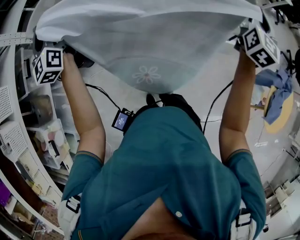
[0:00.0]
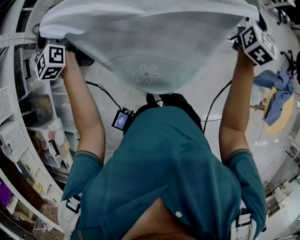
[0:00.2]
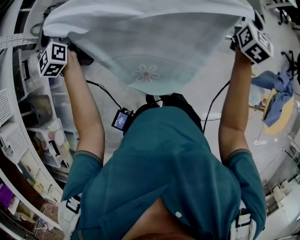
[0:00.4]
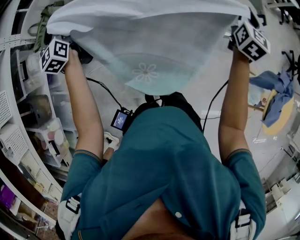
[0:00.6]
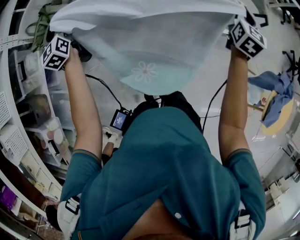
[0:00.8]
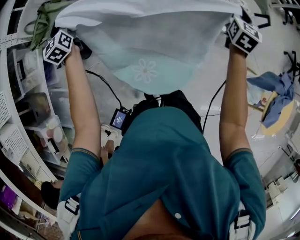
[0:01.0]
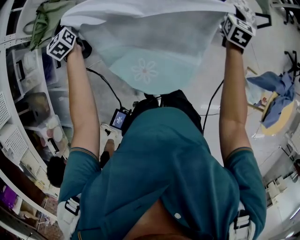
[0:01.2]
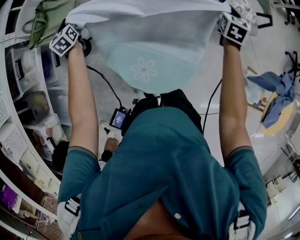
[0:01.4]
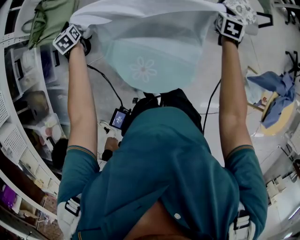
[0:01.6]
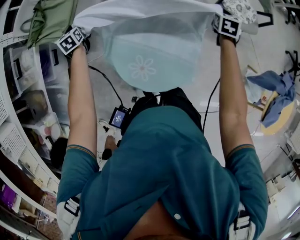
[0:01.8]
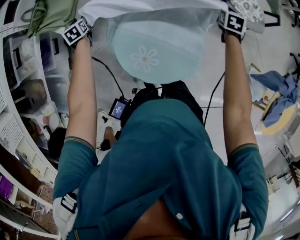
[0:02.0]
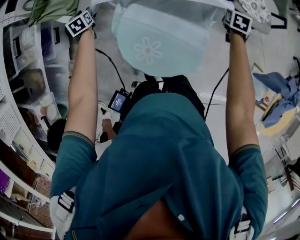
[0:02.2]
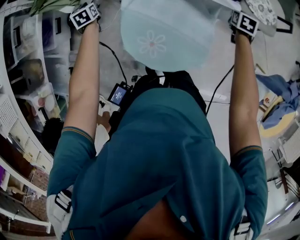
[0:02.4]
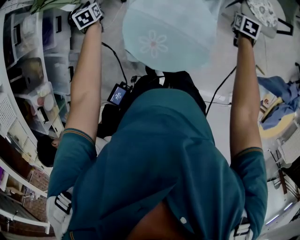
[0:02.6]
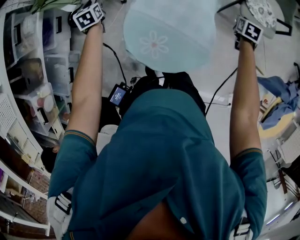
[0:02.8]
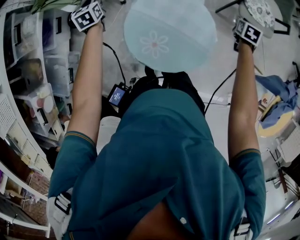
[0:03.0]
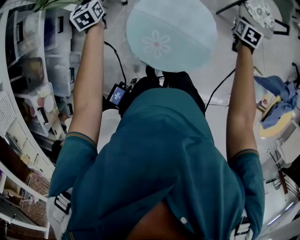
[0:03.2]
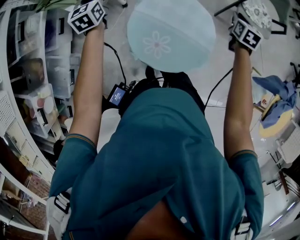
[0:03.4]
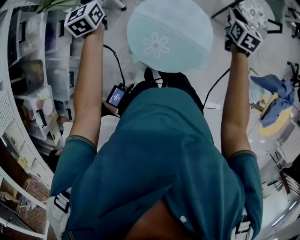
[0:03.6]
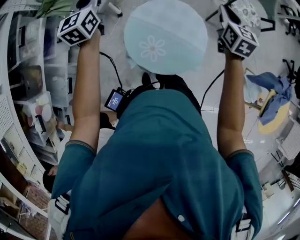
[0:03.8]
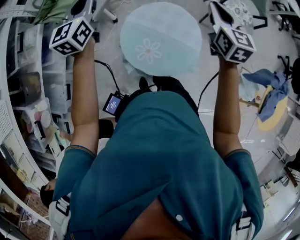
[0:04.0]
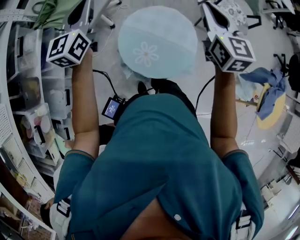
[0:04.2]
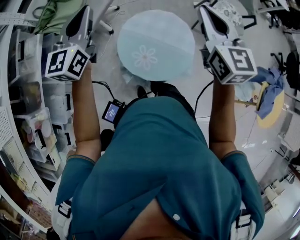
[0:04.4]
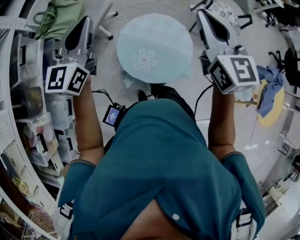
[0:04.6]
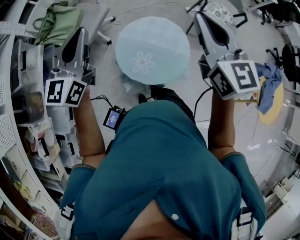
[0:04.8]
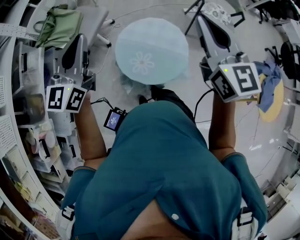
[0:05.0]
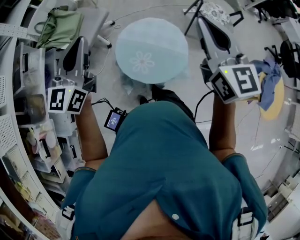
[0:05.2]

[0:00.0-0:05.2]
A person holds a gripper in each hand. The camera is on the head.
0:00.0 to 0:01.8: Both grippers travel together downward, about 35 cm. The left gripper tilts its fingers about 50 degrees downward, and opens up. Meanwhile the right gripper points its fingers approximately 40 degrees further downward.
0:01.8 to 0:03.4: The left gripper shifts some 15 cm upward, to the right and backward, and rotates approximately 20 degrees. The right gripper shifts roughly 10 cm backward and to the left, and goes downward and returns, about 10 cm each way.
0:03.4 to 0:05.2: The right gripper is displaced upward, backward and to the left by some 50 cm, tips its fingers upward by approximately 40 degrees, and closes its fingers; the left gripper heads backward and upward, covering some 35 cm, rotates approximately 40 degrees, and closes its fingers.

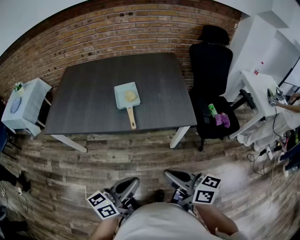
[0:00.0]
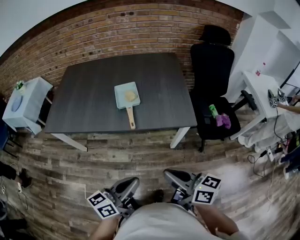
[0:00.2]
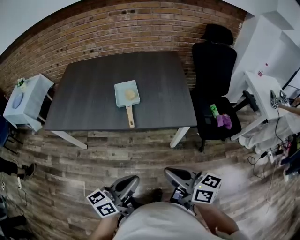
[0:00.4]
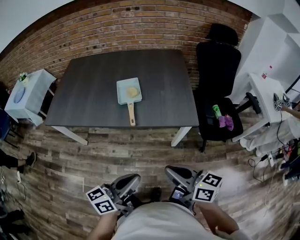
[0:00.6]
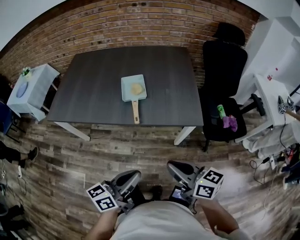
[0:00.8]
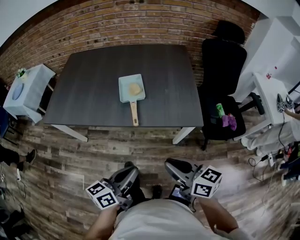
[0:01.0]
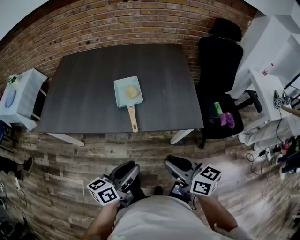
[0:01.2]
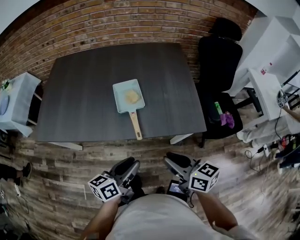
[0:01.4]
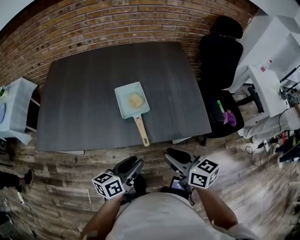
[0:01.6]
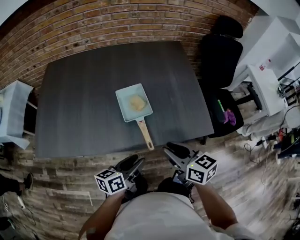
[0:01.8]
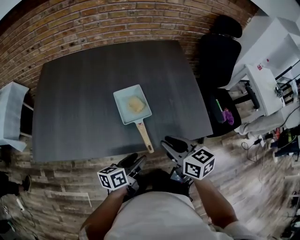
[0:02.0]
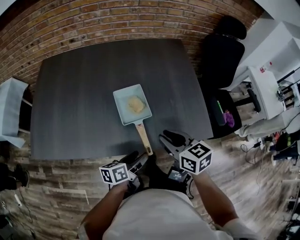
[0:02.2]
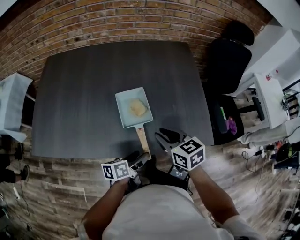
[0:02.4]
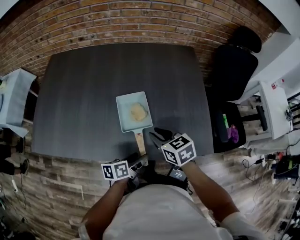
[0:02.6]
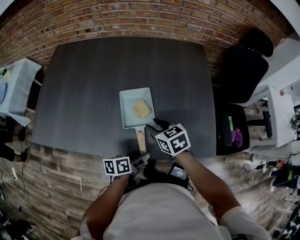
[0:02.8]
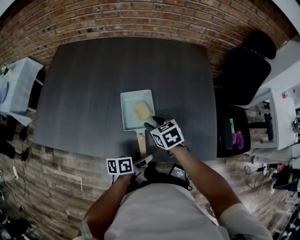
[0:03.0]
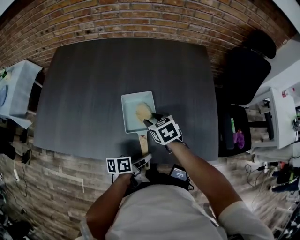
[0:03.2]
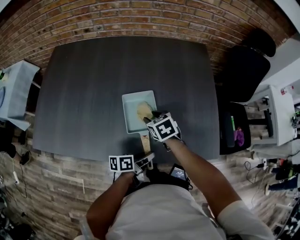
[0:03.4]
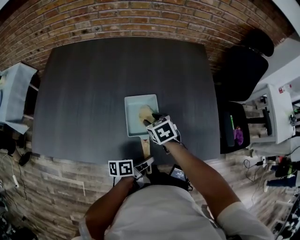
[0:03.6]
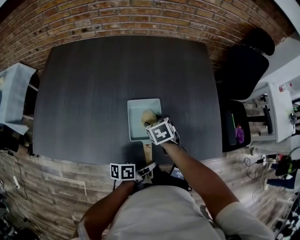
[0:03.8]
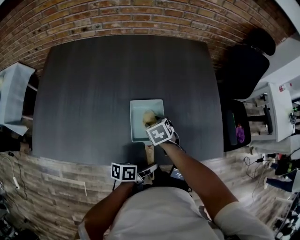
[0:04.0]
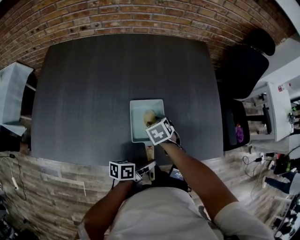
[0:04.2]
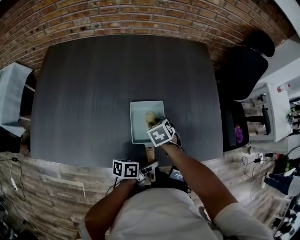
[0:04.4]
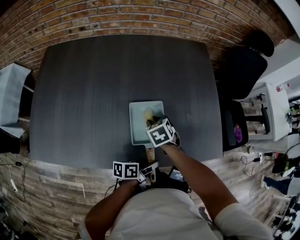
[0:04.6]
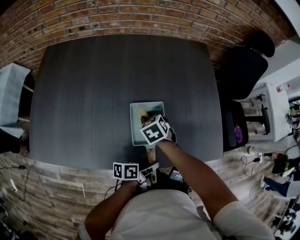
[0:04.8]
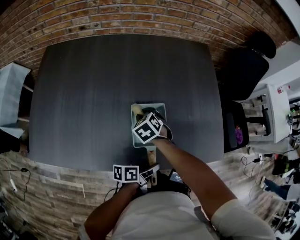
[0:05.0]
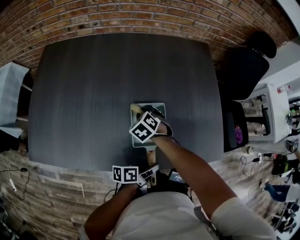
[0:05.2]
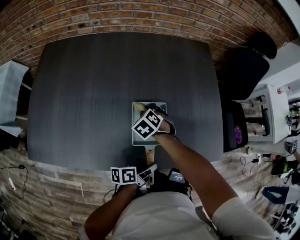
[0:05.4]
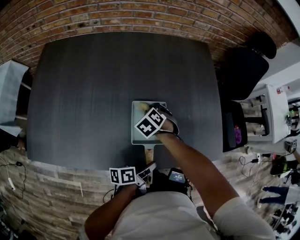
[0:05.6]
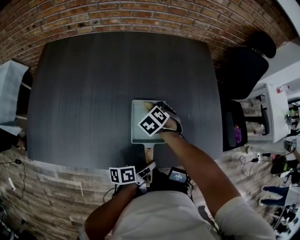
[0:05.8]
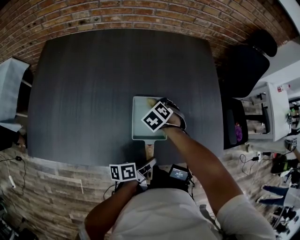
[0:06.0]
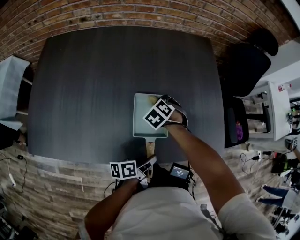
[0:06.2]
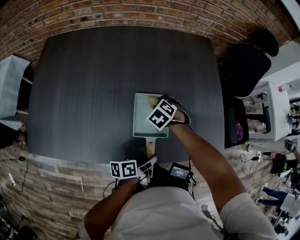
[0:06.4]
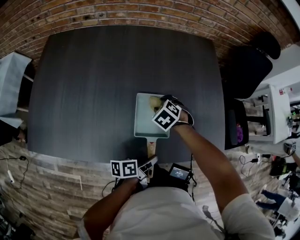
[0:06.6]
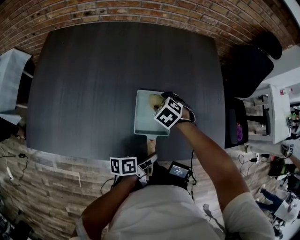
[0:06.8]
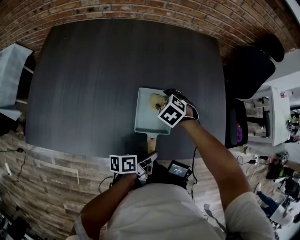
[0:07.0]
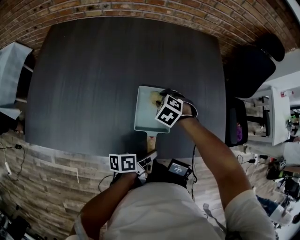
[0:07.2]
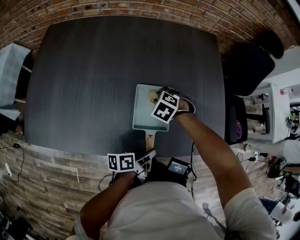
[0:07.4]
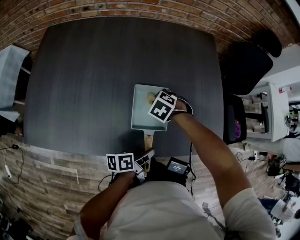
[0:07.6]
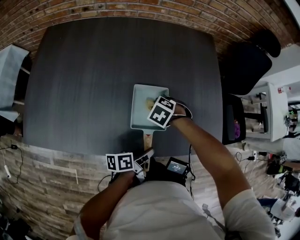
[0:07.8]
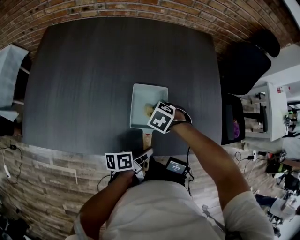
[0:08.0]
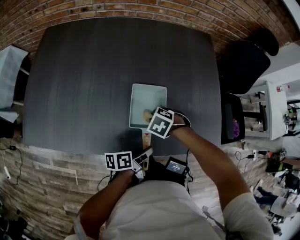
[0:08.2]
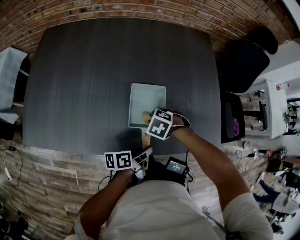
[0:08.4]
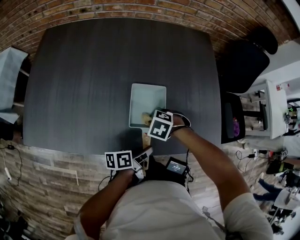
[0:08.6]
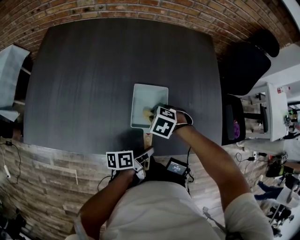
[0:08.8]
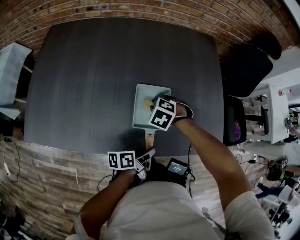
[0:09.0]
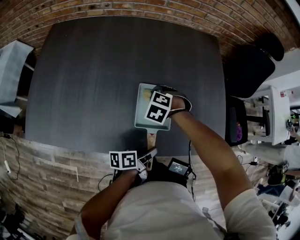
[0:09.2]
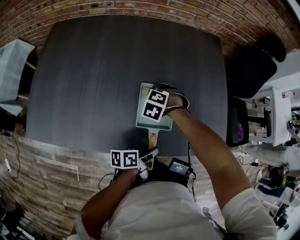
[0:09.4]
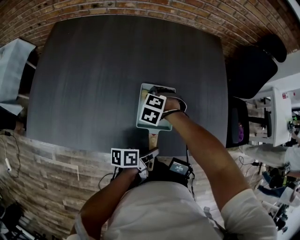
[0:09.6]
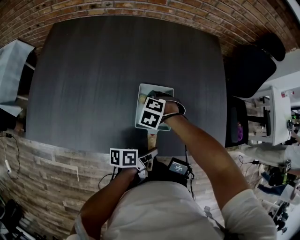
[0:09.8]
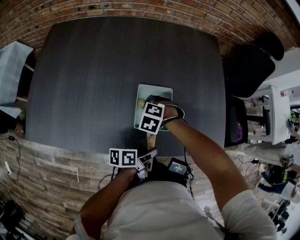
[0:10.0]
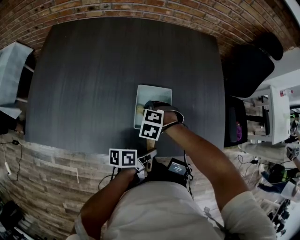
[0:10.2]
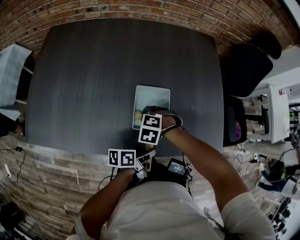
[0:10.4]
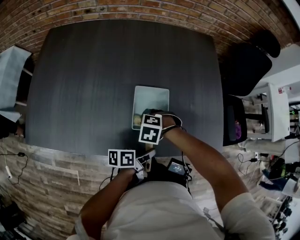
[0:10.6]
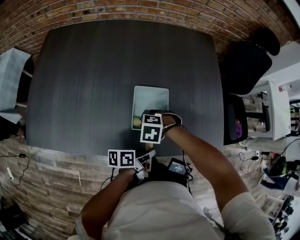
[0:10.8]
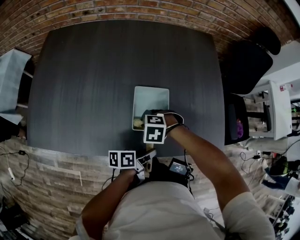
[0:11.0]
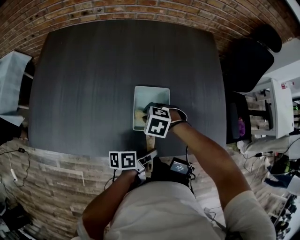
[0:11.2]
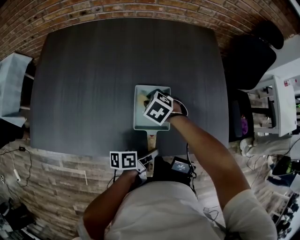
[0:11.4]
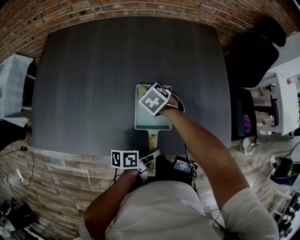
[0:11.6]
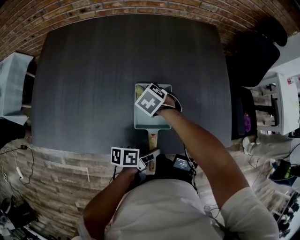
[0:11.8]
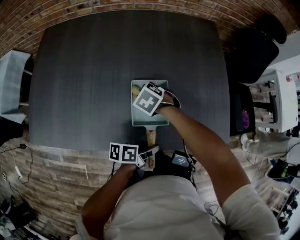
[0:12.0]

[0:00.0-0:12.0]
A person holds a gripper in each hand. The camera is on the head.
0:00.0 to 0:01.6: The right gripper changes place by approximately 25 cm.
0:01.6 to 0:03.0: The right gripper shifts by approximately 30 cm, and turns by about 30 degrees.
0:03.0 to 0:04.4: The right gripper heads downward, covering approximately 5 cm, and rotates about 20 degrees.
0:04.4 to 0:06.0: The right gripper moves about 5 cm, and changes its angle by some 20 degrees.
0:06.0 to 0:07.6: The right gripper opens, then closes again.
0:09.0 to 0:10.4: The right gripper changes place by about 5 cm.
0:10.4 to 0:12.0: The right gripper ends up roughly 5 cm from where it was, and turns by some 30 degrees.

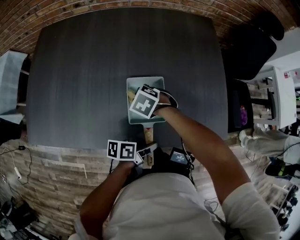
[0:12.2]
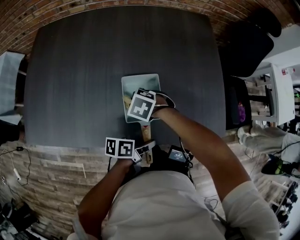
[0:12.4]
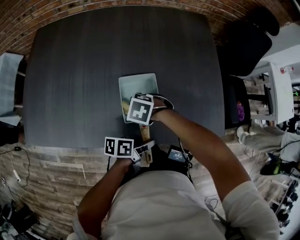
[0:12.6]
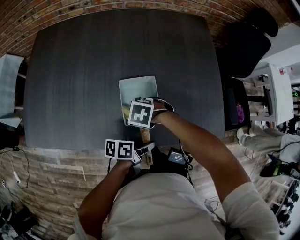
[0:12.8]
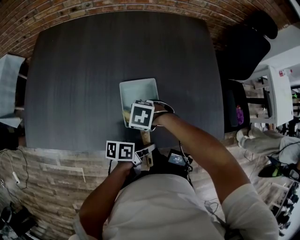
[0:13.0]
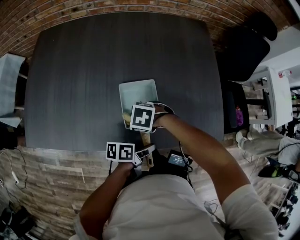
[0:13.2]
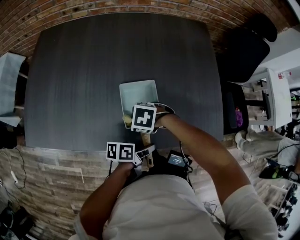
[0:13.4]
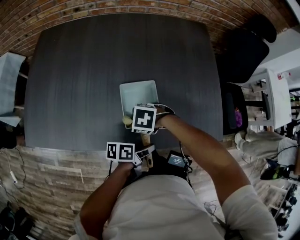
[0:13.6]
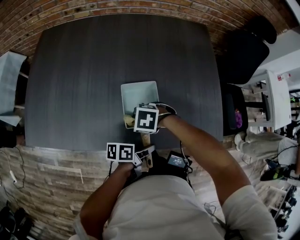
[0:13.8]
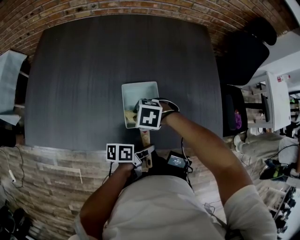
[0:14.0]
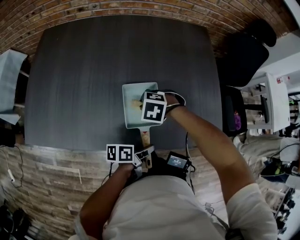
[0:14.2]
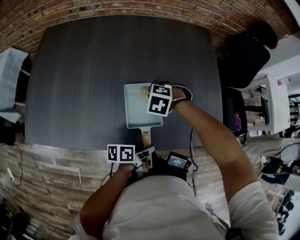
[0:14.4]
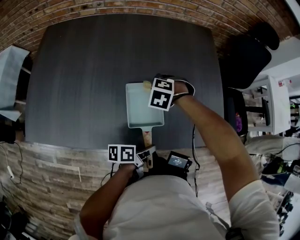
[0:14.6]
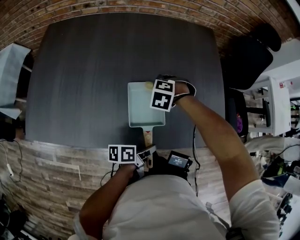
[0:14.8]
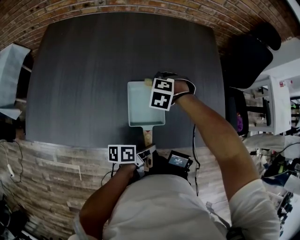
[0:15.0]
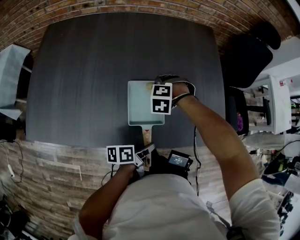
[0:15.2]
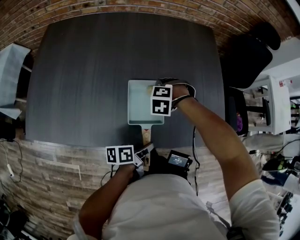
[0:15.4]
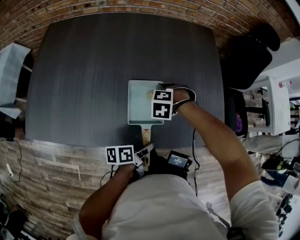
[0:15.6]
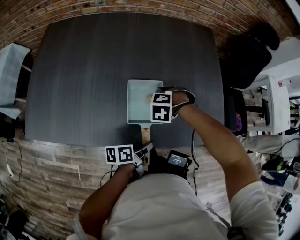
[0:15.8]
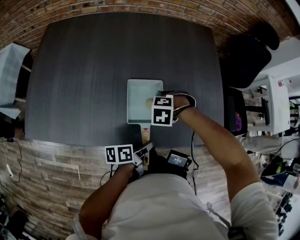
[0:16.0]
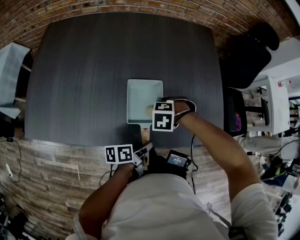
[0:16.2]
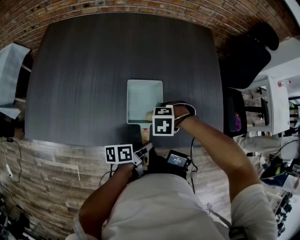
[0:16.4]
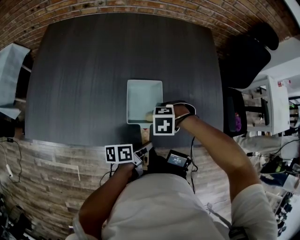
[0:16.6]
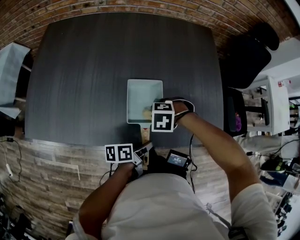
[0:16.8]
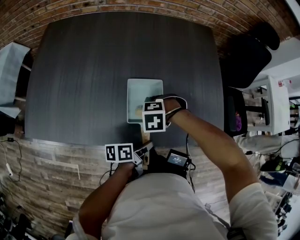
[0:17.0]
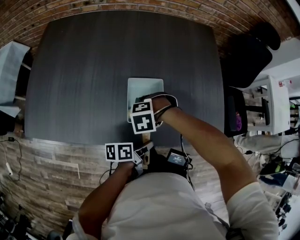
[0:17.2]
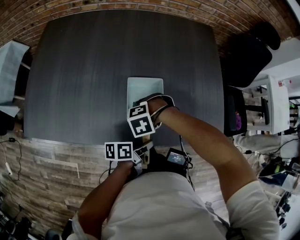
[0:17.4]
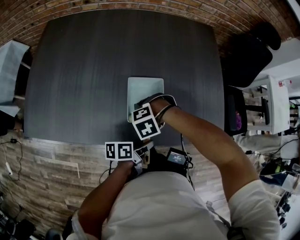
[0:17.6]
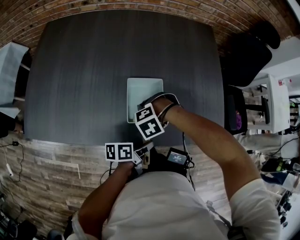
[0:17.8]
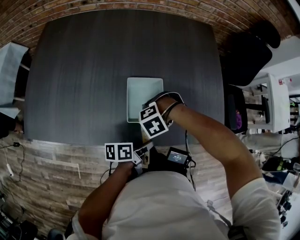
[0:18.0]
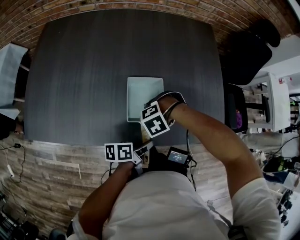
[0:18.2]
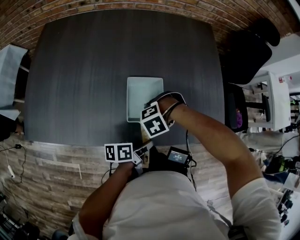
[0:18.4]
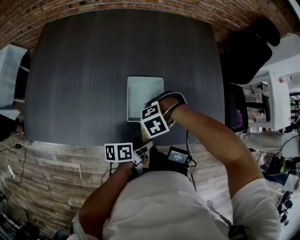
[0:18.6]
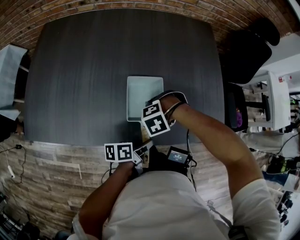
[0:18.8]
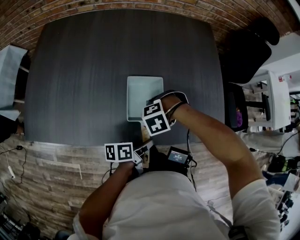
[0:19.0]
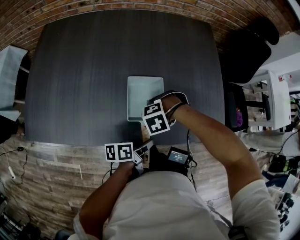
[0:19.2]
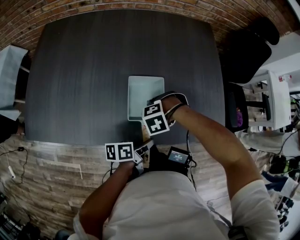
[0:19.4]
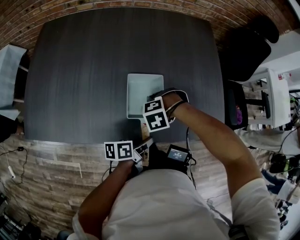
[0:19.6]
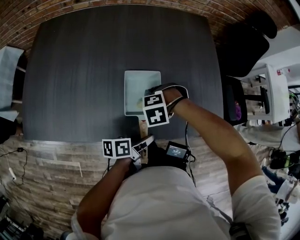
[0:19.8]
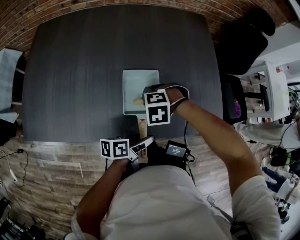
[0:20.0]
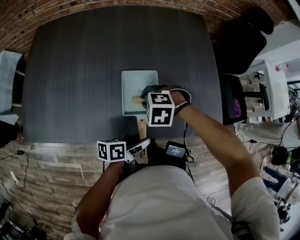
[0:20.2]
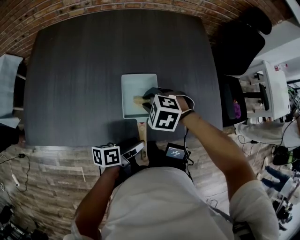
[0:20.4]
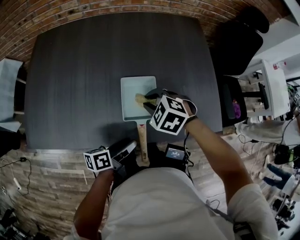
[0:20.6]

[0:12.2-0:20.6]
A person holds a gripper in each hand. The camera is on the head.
0:12.2 to 0:13.6: The right gripper ends up approximately 10 cm from where it was, and turns by roughly 20 degrees.
0:13.6 to 0:15.0: The right gripper changes place by some 20 cm, and changes its angle by about 40 degrees.
0:15.0 to 0:16.4: The right gripper changes place by approximately 15 cm, and changes its angle by approximately 20 degrees.
0:16.4 to 0:17.8: The right gripper changes place by roughly 5 cm, and turns by approximately 30 degrees.
0:19.2 to 0:20.6: The right gripper is displaced upward by some 10 cm, and turns by approximately 50 degrees.
